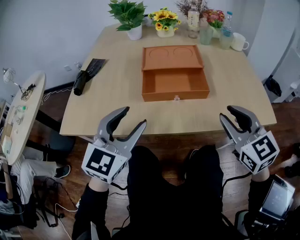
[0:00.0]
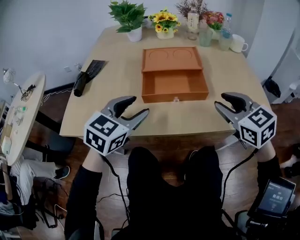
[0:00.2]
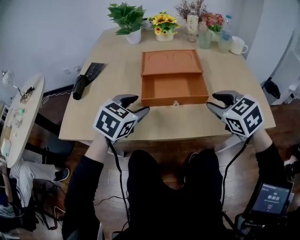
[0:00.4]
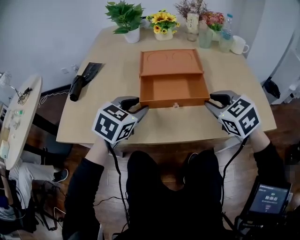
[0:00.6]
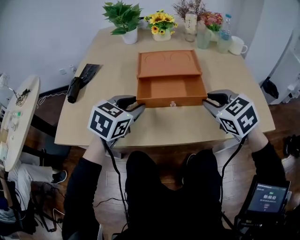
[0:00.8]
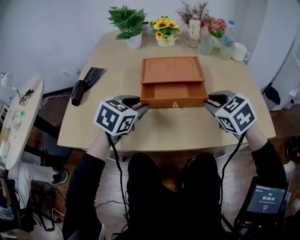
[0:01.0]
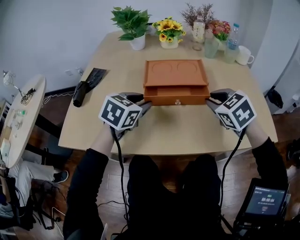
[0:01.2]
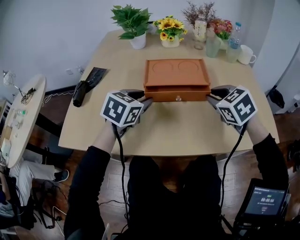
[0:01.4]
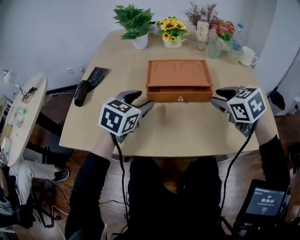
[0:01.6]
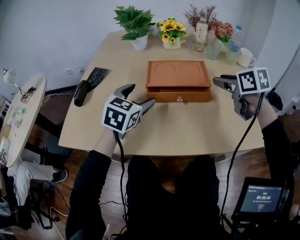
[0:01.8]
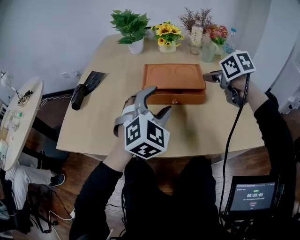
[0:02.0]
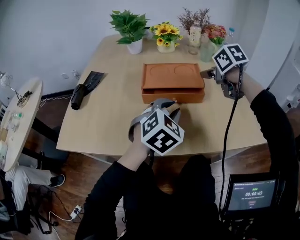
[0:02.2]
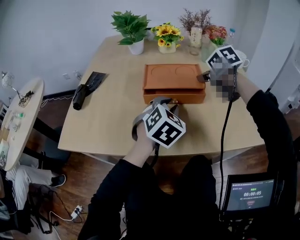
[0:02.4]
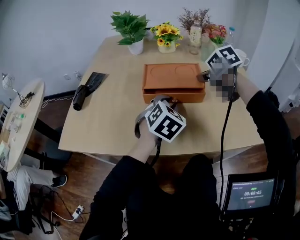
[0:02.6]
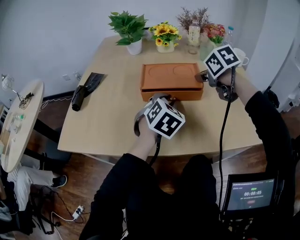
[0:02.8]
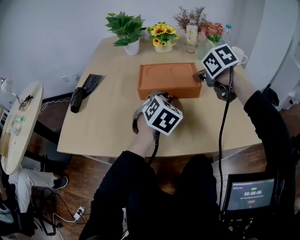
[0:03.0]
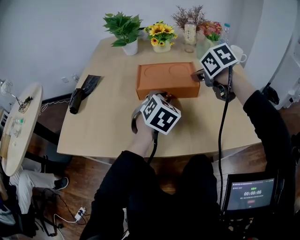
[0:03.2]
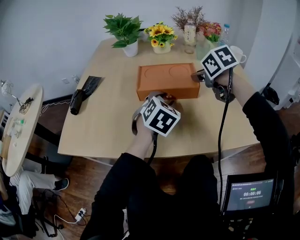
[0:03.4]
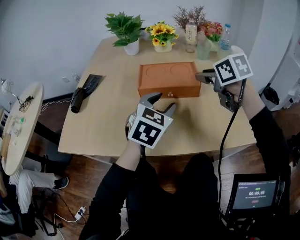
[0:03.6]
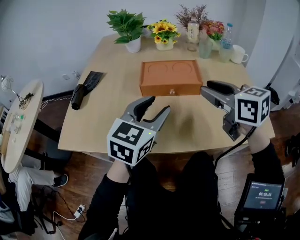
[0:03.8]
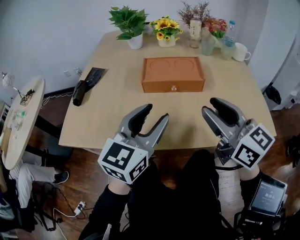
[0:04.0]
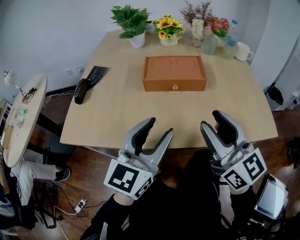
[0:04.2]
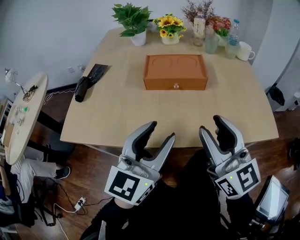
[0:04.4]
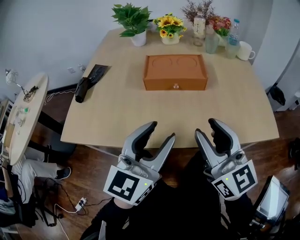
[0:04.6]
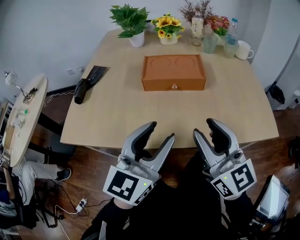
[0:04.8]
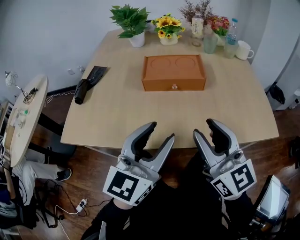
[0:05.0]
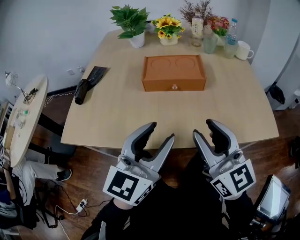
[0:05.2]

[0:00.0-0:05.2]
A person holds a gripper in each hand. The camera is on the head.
0:00.0 to 0:01.8: Both grippers travel together forward, approximately 20 cm. The left gripper opens its fingers; the right gripper swivels some 30 degrees.
0:01.8 to 0:03.4: The right gripper ends up approximately 5 cm from where it was, while the left gripper travels to the right by roughly 15 cm, and closes up.
0:03.4 to 0:05.2: The left gripper goes roughly 20 cm backward and upward, and tips its fingers upward by some 40 degrees; the right gripper goes about 25 cm backward, and tips its fingers upward by some 50 degrees.

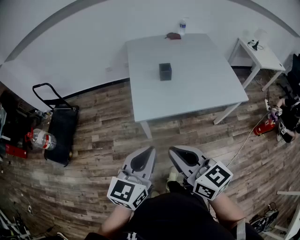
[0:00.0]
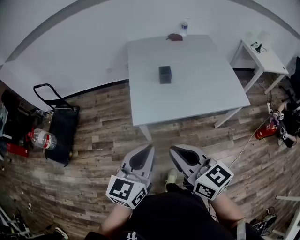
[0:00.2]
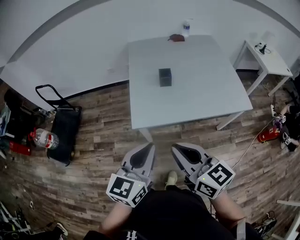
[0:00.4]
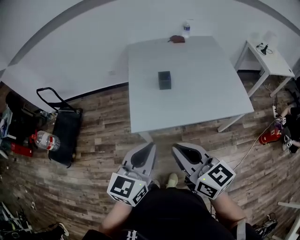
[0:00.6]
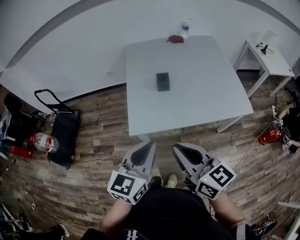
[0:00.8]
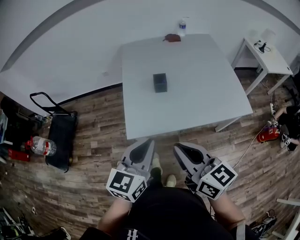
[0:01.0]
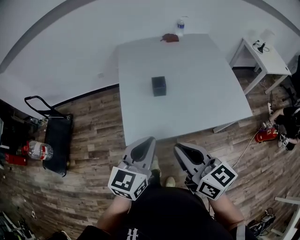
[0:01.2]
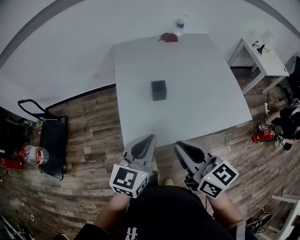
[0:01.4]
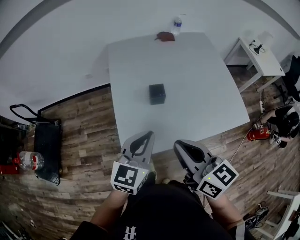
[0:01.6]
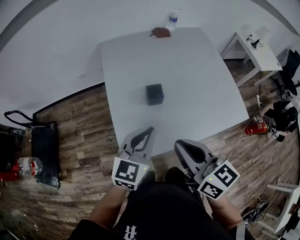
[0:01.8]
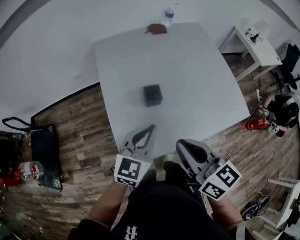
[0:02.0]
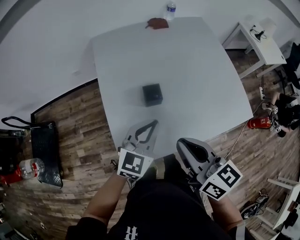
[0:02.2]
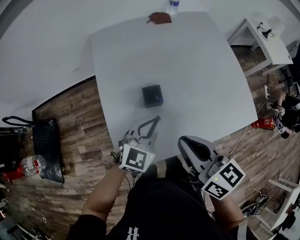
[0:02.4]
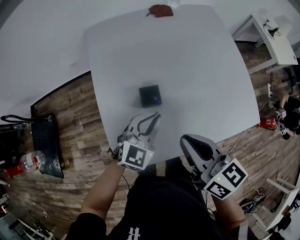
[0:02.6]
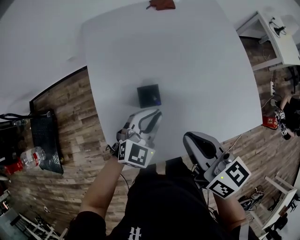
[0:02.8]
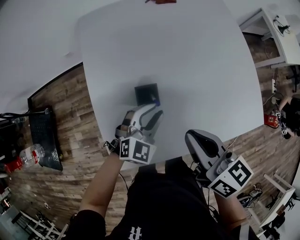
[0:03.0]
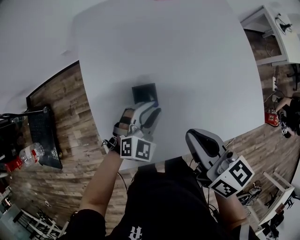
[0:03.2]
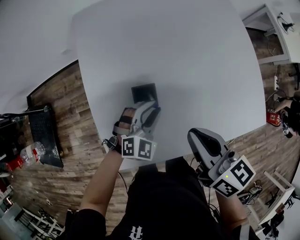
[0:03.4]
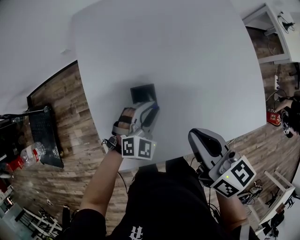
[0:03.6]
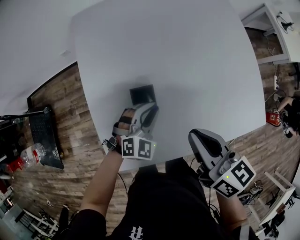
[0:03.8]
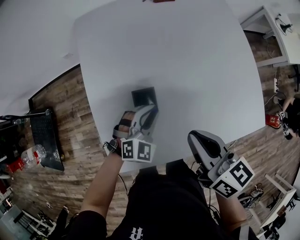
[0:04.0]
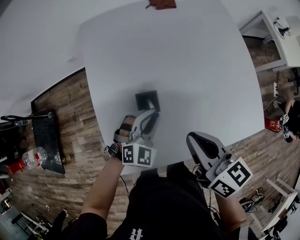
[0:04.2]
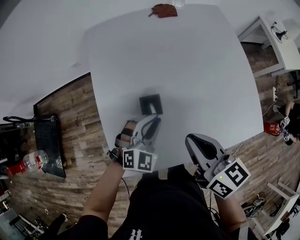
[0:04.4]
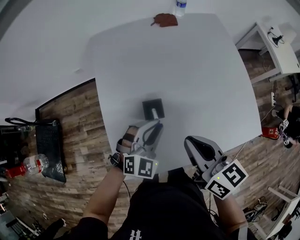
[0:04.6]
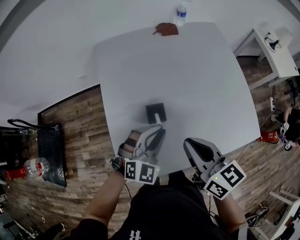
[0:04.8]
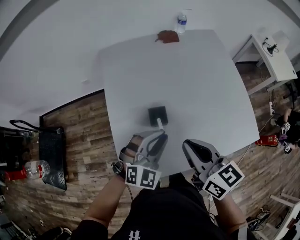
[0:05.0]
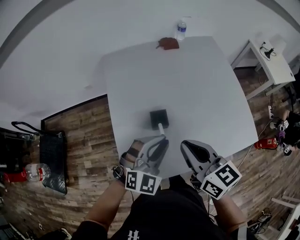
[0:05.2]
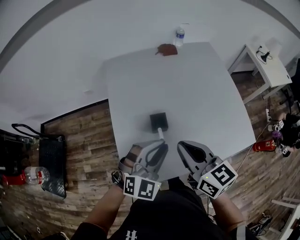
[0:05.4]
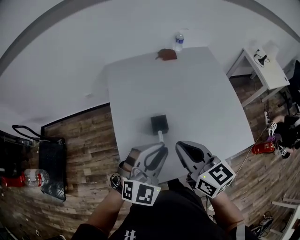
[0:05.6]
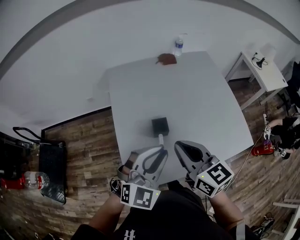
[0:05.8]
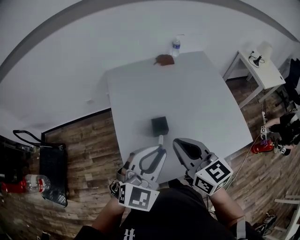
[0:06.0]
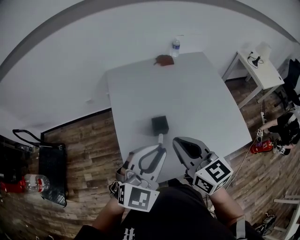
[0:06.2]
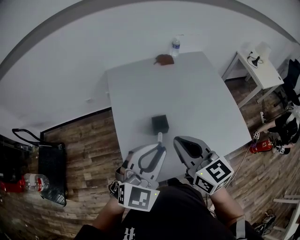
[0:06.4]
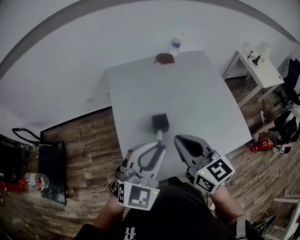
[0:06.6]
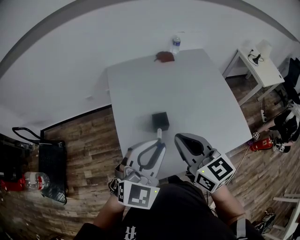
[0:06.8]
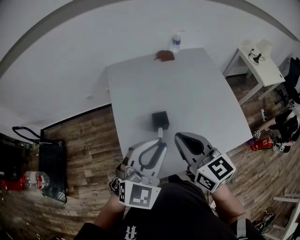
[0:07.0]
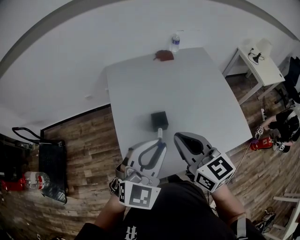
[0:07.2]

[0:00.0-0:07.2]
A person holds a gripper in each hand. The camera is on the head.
0:00.0 to 0:01.4: The two grippers go about 25 cm forward.
0:01.4 to 0:02.8: The left gripper goes roughly 25 cm forward and downward, and swivels about 30 degrees. The right gripper heads forward, covering roughly 20 cm.
0:04.4 to 0:05.8: The right gripper travels upward and to the left by about 10 cm. Meanwhile the left gripper moves upward and backward, approximately 20 cm.
0:05.8 to 0:07.2: The grippers stay close to where they were, moving slightly.

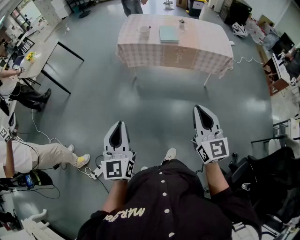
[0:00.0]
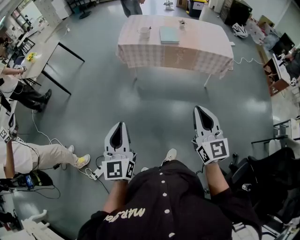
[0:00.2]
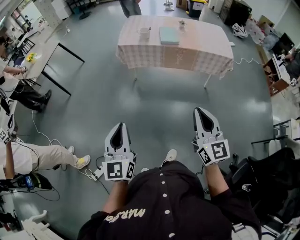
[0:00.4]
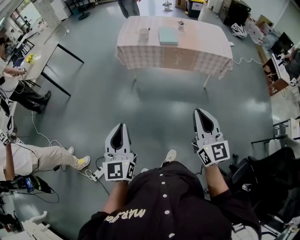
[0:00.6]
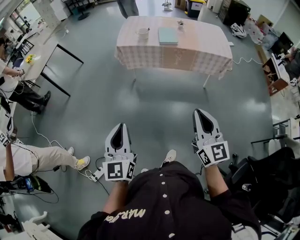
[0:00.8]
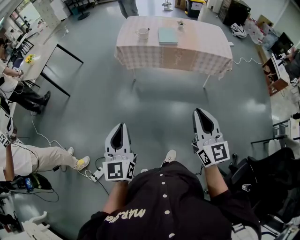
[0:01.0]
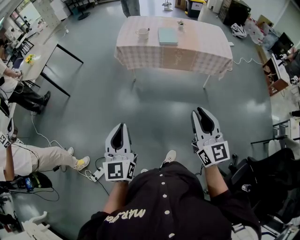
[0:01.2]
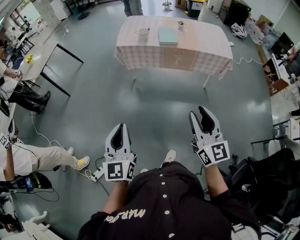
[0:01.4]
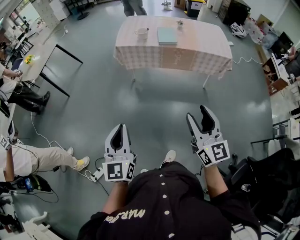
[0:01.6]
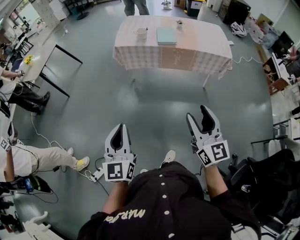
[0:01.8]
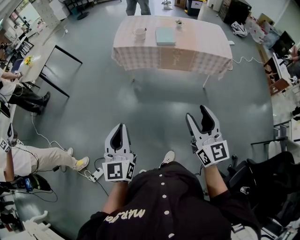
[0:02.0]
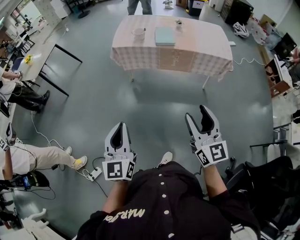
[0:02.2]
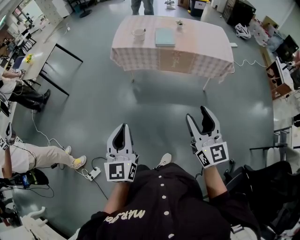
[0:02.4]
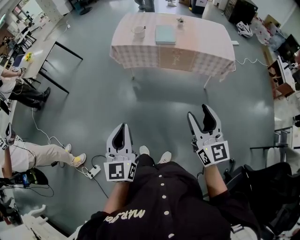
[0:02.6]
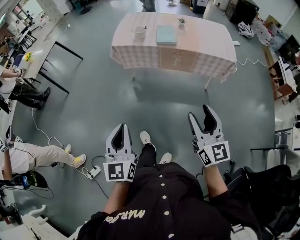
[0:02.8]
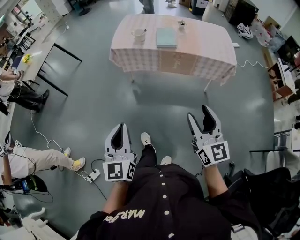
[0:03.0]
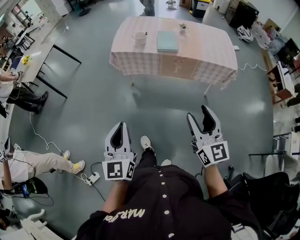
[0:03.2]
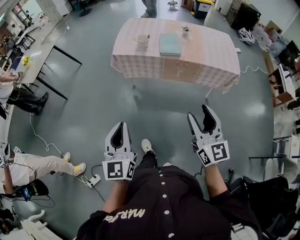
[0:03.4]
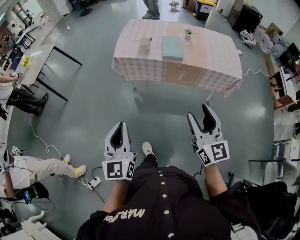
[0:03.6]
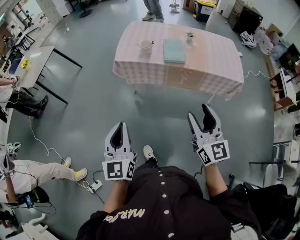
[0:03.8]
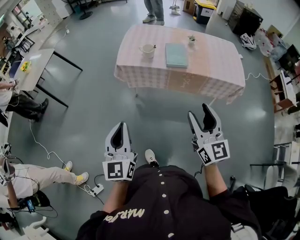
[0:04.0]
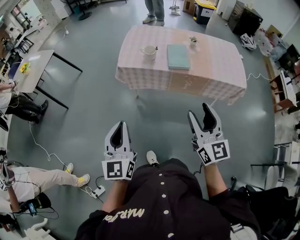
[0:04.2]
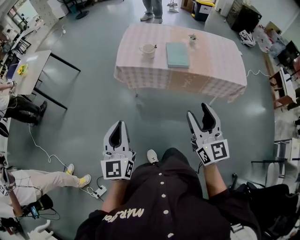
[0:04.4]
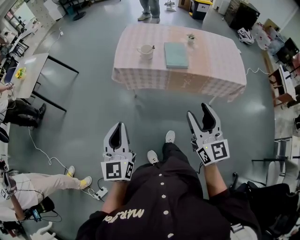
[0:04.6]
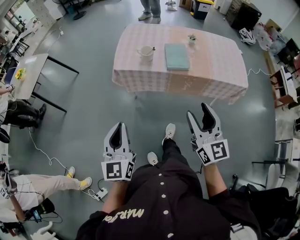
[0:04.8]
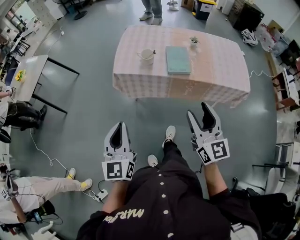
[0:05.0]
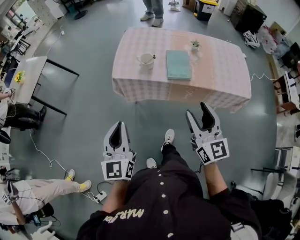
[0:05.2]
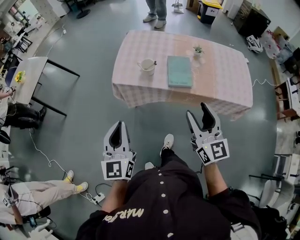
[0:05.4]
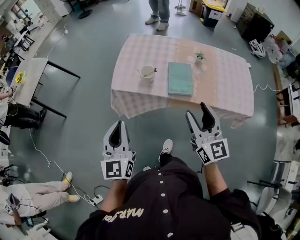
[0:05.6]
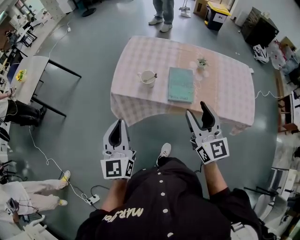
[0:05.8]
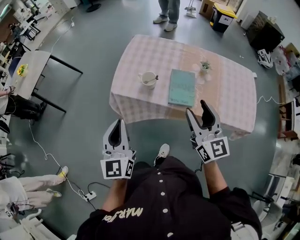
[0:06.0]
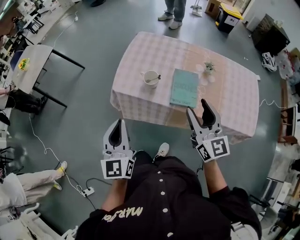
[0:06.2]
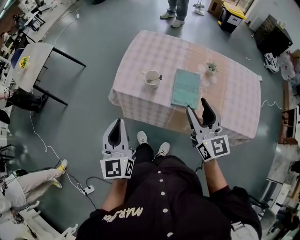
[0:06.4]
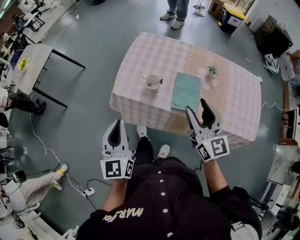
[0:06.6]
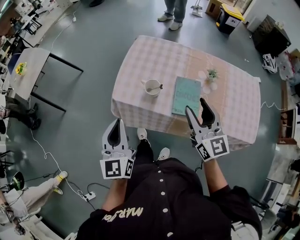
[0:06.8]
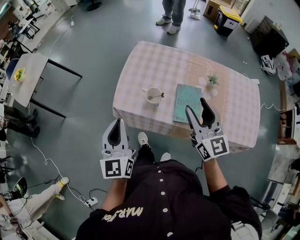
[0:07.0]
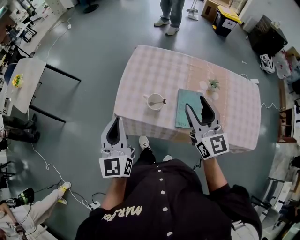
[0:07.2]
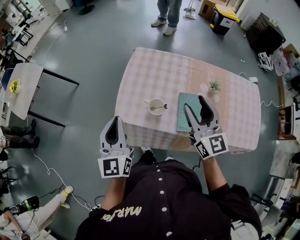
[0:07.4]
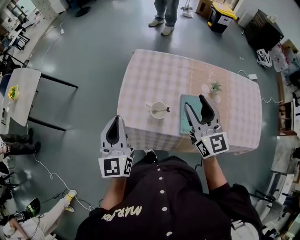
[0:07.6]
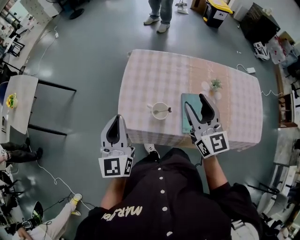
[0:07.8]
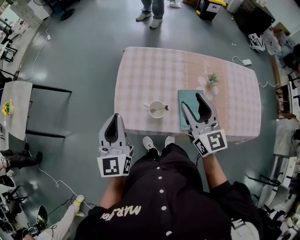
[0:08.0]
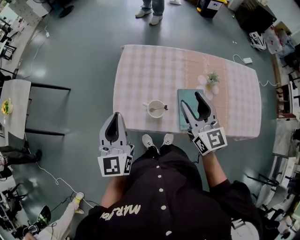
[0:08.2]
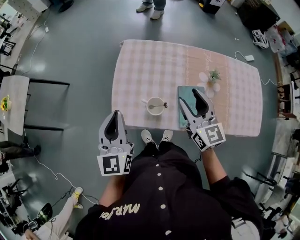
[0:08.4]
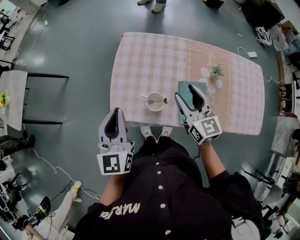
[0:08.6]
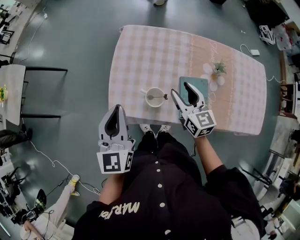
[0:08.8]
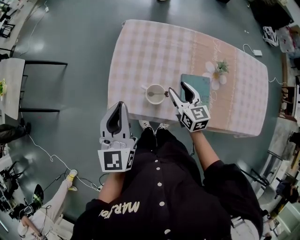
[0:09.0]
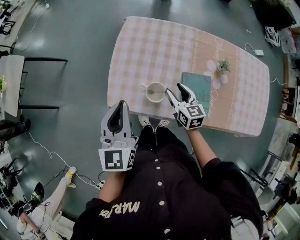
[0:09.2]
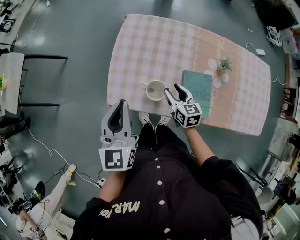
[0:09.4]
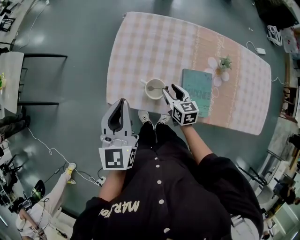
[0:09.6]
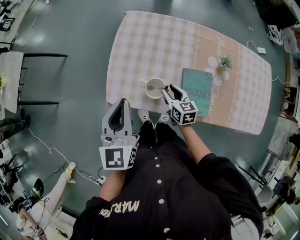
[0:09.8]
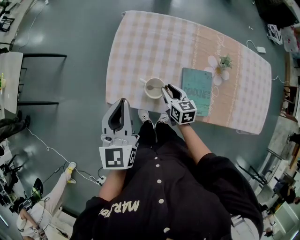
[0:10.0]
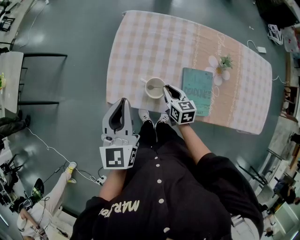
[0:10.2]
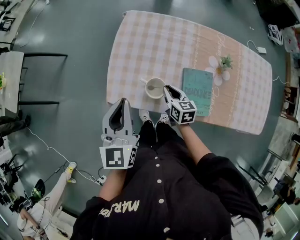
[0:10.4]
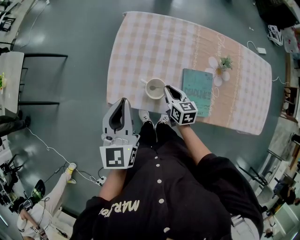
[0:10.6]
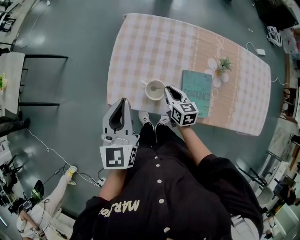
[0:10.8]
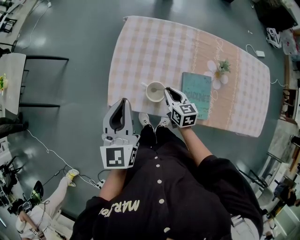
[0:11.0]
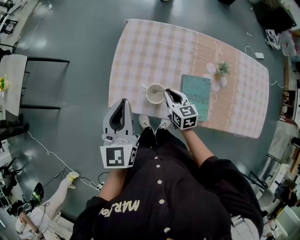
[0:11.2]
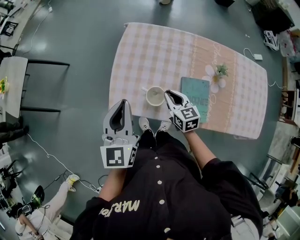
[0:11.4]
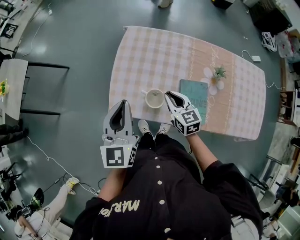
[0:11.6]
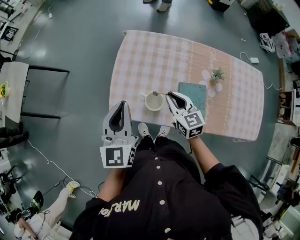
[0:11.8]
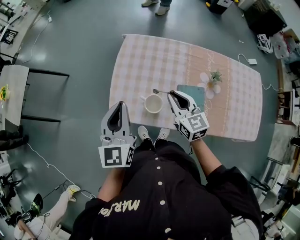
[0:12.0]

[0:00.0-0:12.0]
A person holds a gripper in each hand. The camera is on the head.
0:00.0 to 0:01.6: The right gripper opens its fingers.
0:01.6 to 0:03.0: The grippers both shift forward and to the right by approximately 10 cm.
0:03.0 to 0:04.4: The grippers both shift forward by approximately 20 cm.
0:04.4 to 0:06.0: The grippers both shift forward by about 30 cm.
0:06.0 to 0:07.6: Both grippers move forward, approximately 25 cm.
0:07.6 to 0:09.0: The left gripper changes place by approximately 10 cm; the right gripper heads downward, covering about 25 cm, and swivels approximately 30 degrees.
0:09.0 to 0:10.4: The right gripper shifts roughly 10 cm downward, and closes its fingers.
0:10.4 to 0:12.0: The right gripper is displaced upward by about 20 cm, and swivels some 30 degrees.
